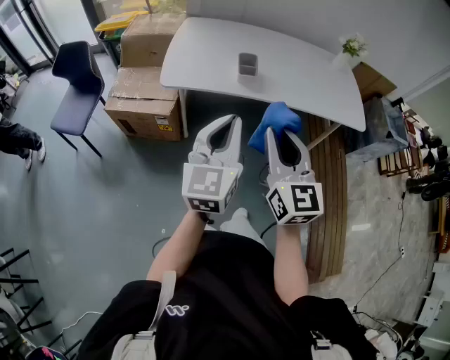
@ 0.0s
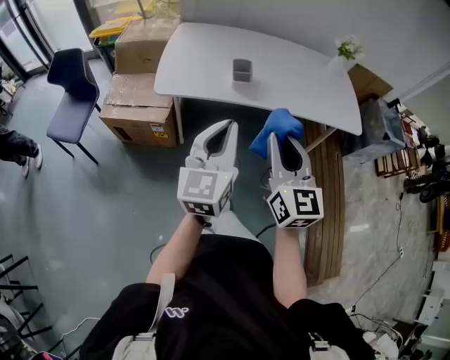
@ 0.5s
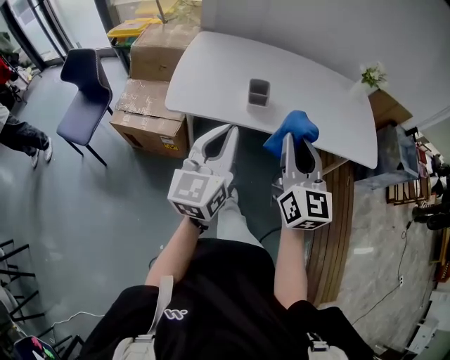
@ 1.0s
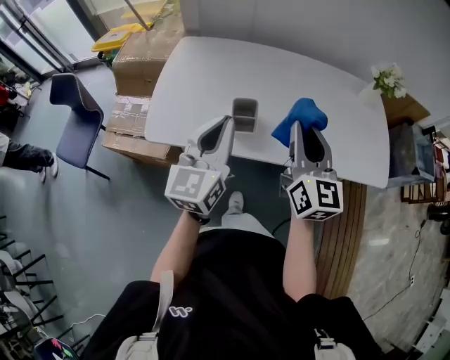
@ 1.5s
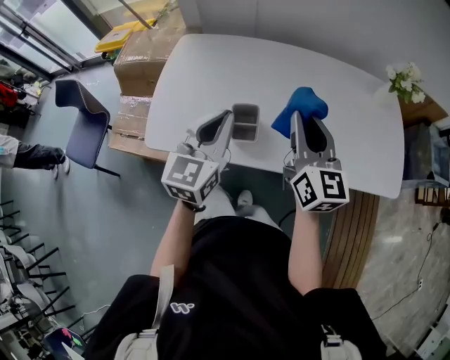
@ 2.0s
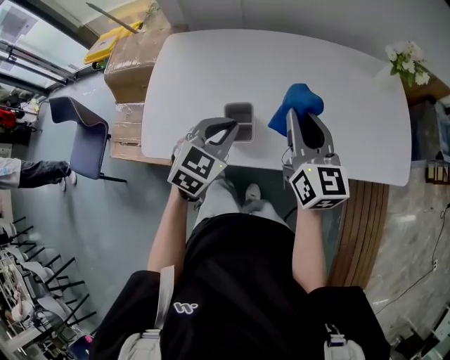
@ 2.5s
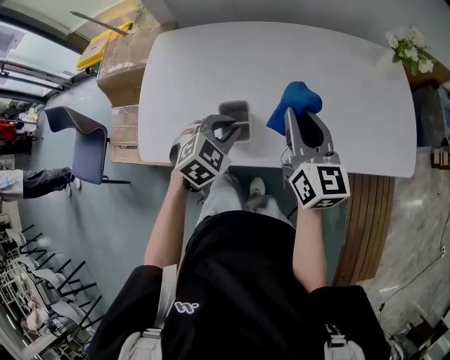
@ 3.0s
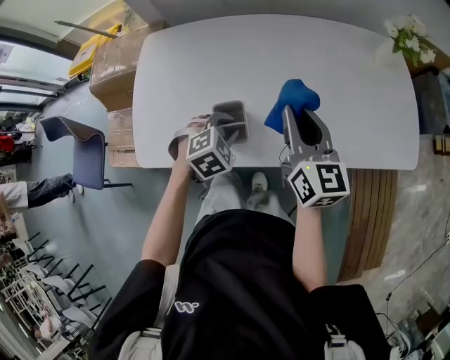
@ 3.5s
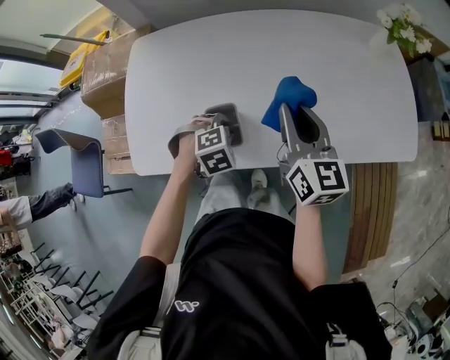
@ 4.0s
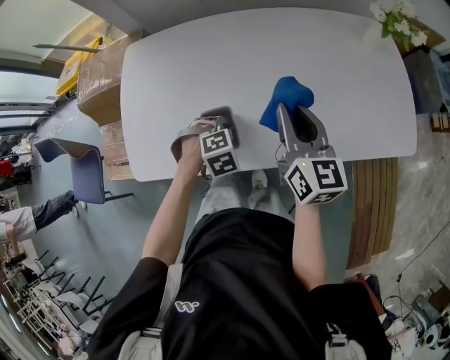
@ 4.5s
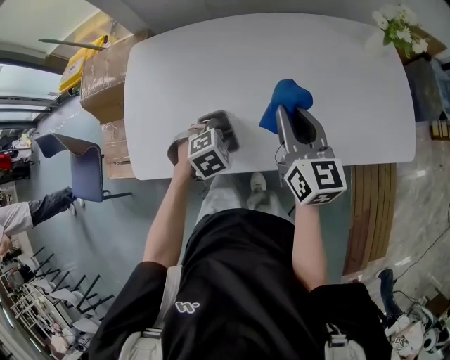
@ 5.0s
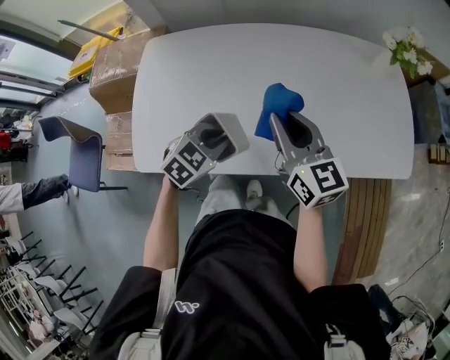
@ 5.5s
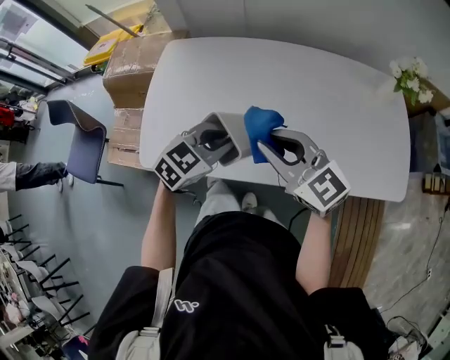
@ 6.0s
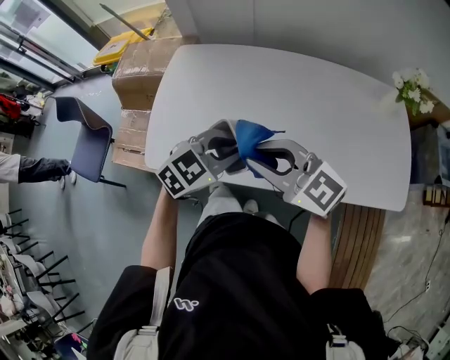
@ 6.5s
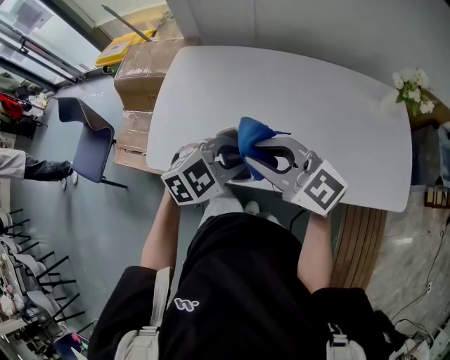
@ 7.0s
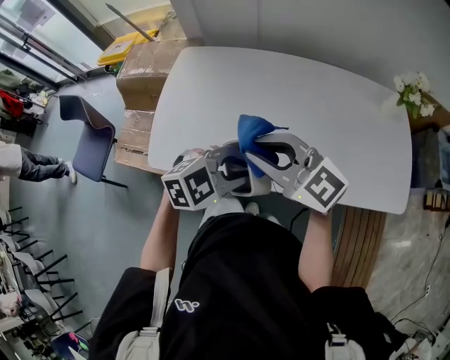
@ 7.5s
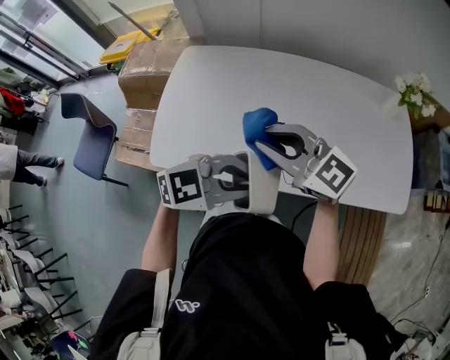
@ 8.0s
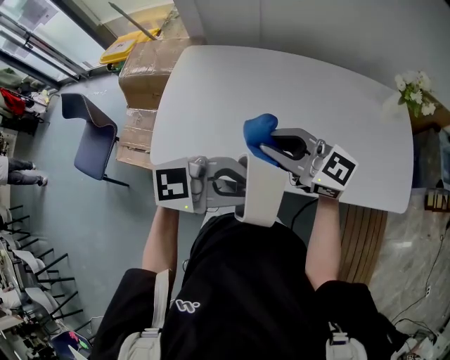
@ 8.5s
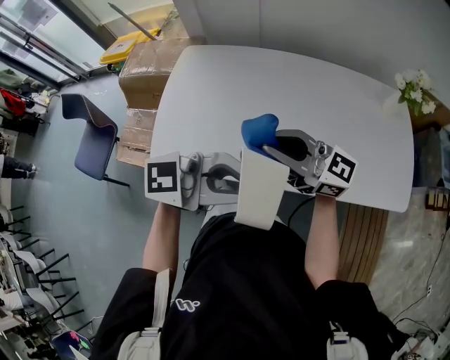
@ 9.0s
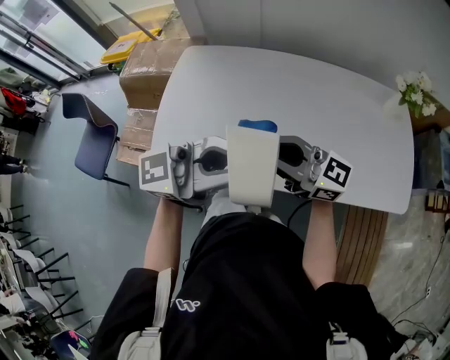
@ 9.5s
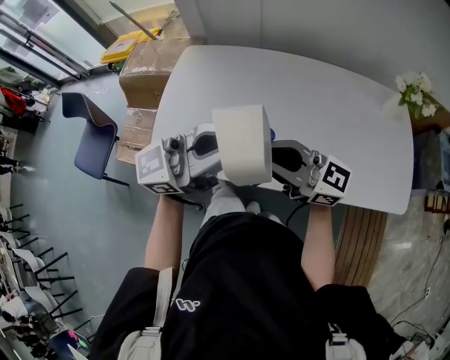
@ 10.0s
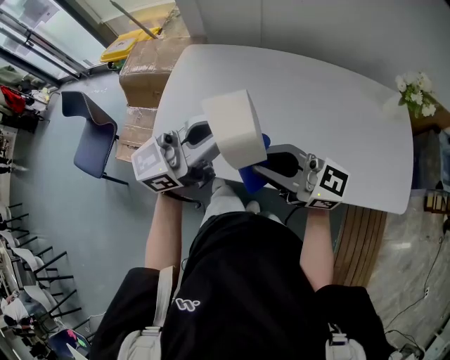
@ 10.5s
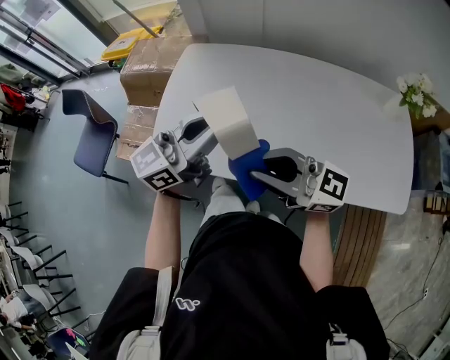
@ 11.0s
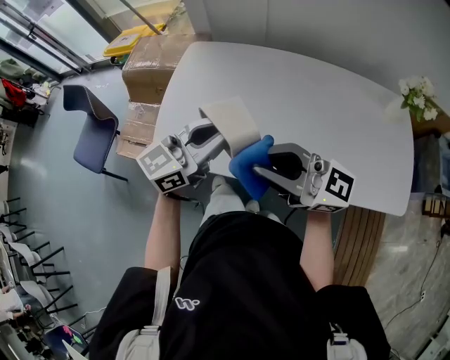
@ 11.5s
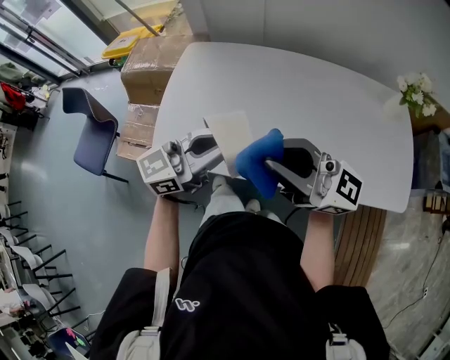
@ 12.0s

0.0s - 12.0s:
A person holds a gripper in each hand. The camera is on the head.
0.0s - 2.0s: The two grippers go about 40 cm forward.
2.0s - 4.0s: The left gripper moves downward, roughly 25 cm, angles its fingers downward, by approximately 70 degrees, and opens up; the right gripper shifts some 10 cm downward.
4.0s - 6.0s: The right gripper moves roughly 15 cm, and turns by about 50 degrees; the left gripper is displaced upward by roughly 15 cm, and angles its fingers upward, by some 40 degrees.
6.0s - 8.0s: The left gripper ends up roughly 15 cm from where it was, and rotates approximately 30 degrees.
8.0s - 10.0s: The left gripper heads upward, covering roughly 10 cm, and tips its fingers upward by some 40 degrees. Meanwhile the right gripper turns by approximately 30 degrees.
10.0s - 12.0s: The right gripper moves upward, roughly 10 cm. Meanwhile the left gripper goes some 10 cm downward.

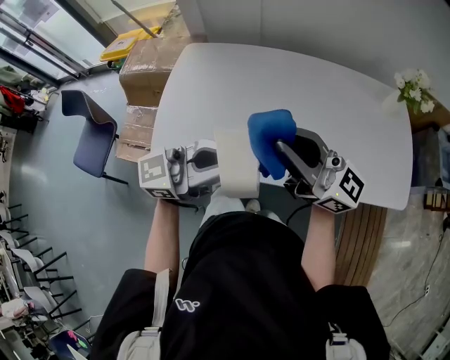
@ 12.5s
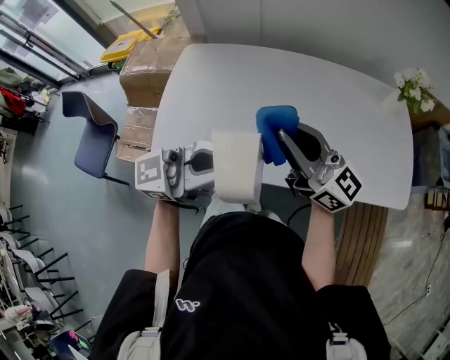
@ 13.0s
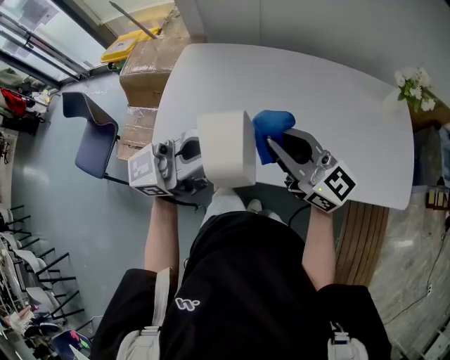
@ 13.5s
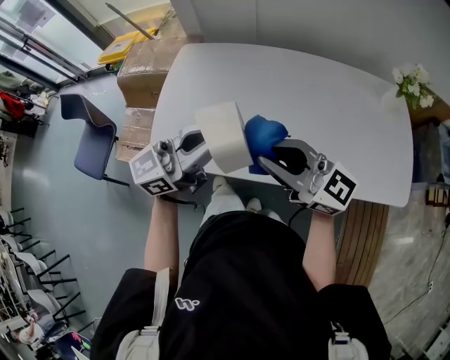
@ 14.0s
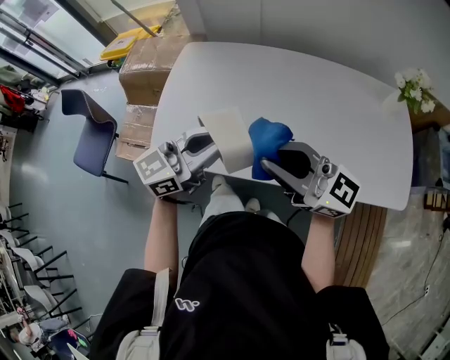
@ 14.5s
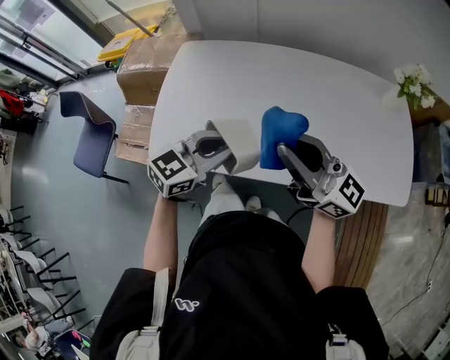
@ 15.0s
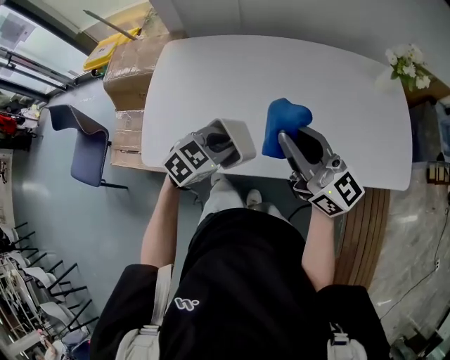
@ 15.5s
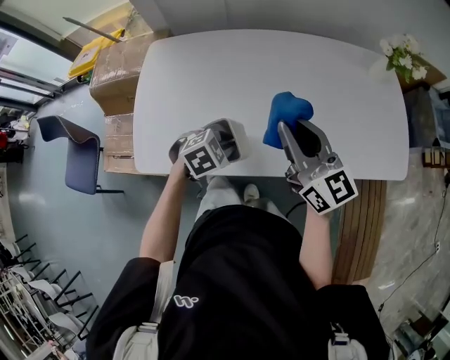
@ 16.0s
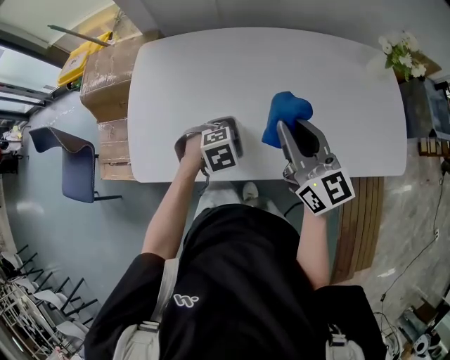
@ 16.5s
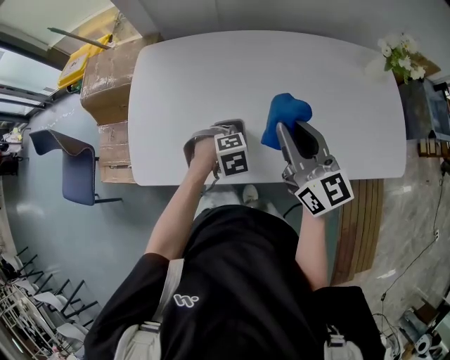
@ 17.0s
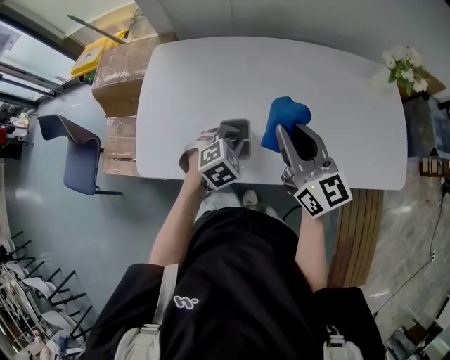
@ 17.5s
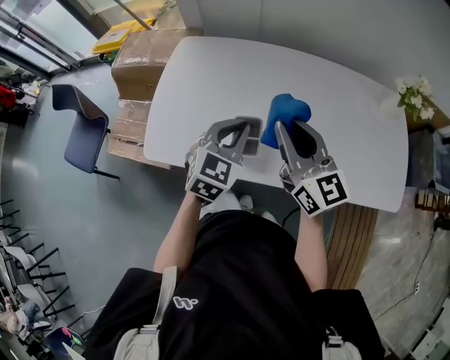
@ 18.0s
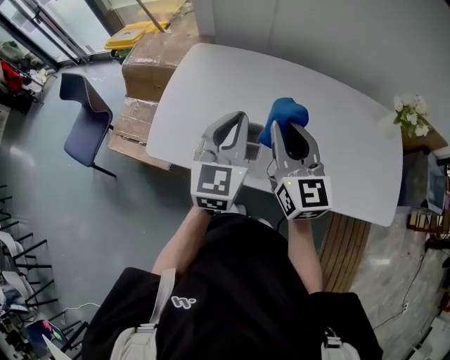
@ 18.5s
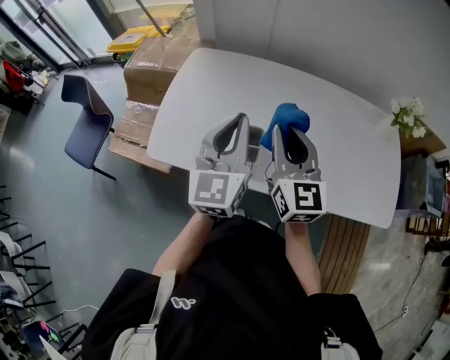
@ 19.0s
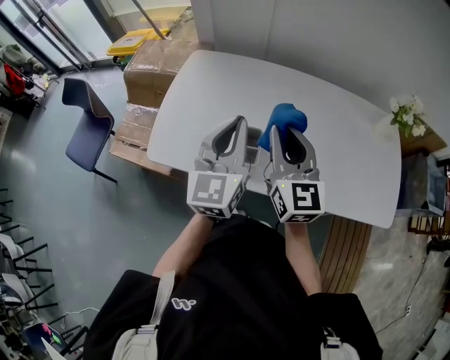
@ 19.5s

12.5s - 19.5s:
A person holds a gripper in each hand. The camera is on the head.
12.5s - 14.5s: The left gripper changes place by about 5 cm, and turns by roughly 20 degrees.
14.5s - 16.0s: The left gripper heads downward, covering approximately 20 cm, and points its fingers roughly 60 degrees further downward, while the right gripper moves roughly 15 cm, and swivels roughly 40 degrees.
17.5s - 19.5s: The right gripper goes approximately 5 cm to the left, while the left gripper goes roughly 25 cm upward, and points its fingers about 60 degrees further upward.

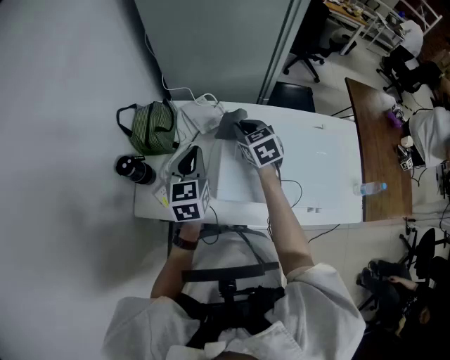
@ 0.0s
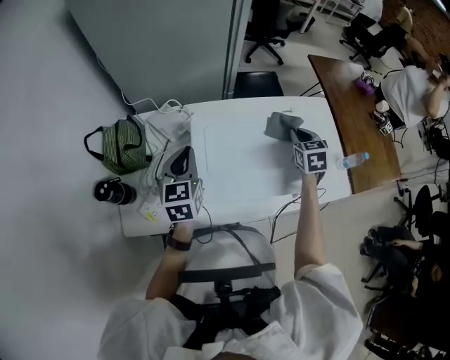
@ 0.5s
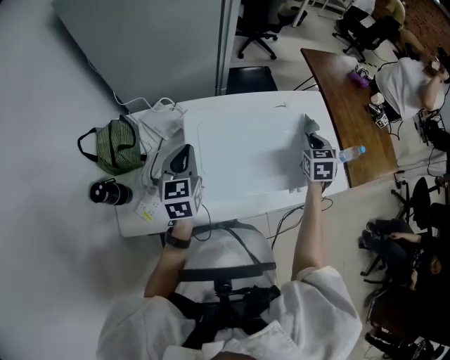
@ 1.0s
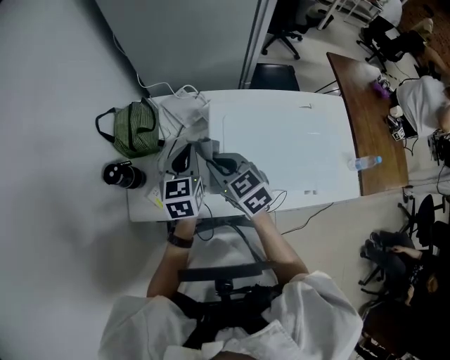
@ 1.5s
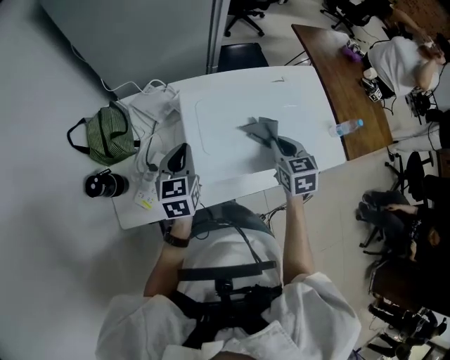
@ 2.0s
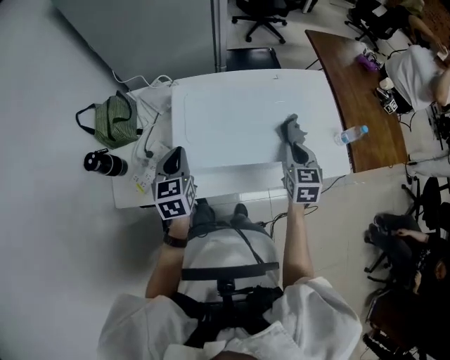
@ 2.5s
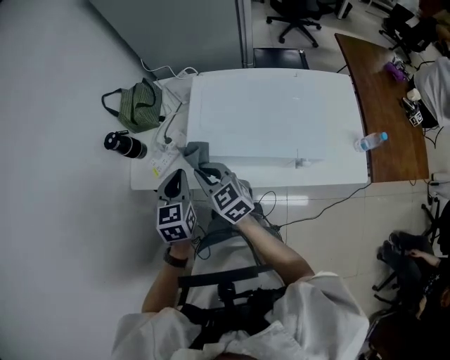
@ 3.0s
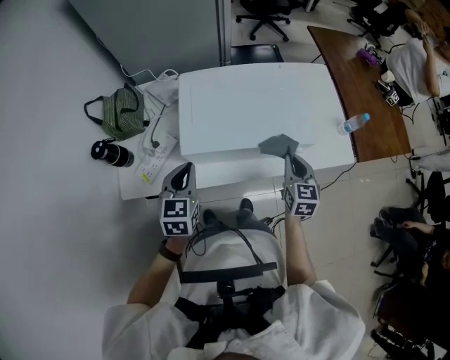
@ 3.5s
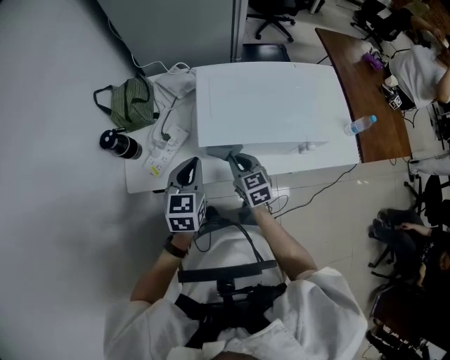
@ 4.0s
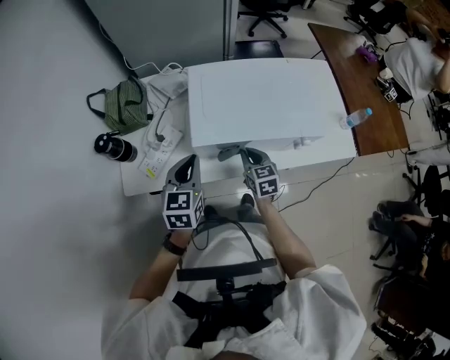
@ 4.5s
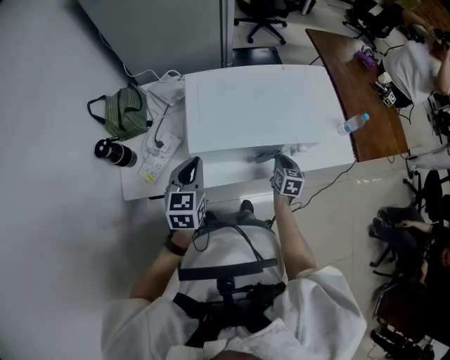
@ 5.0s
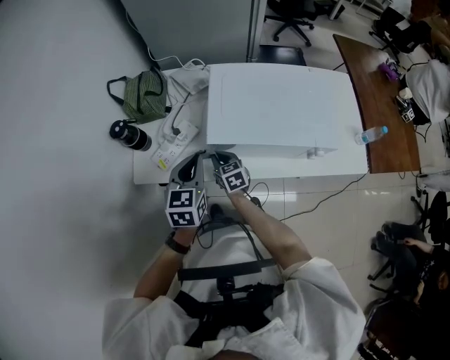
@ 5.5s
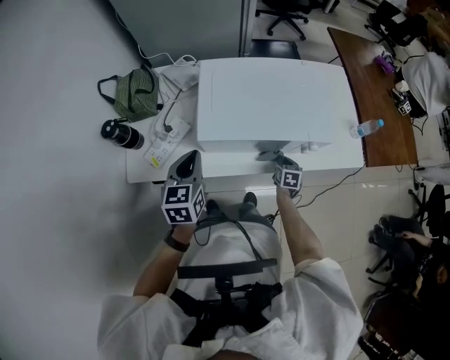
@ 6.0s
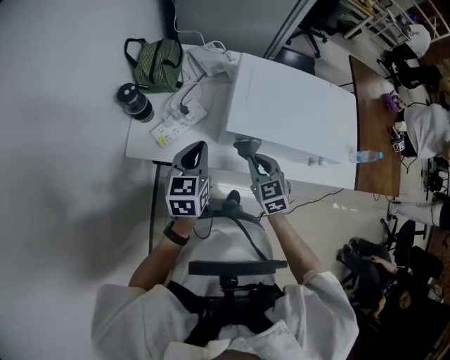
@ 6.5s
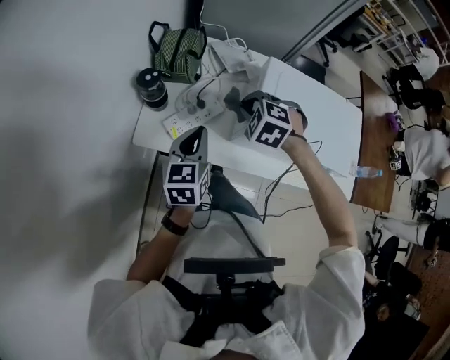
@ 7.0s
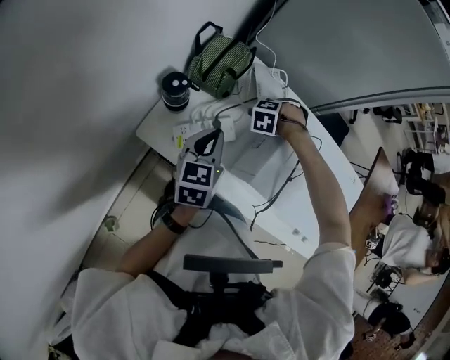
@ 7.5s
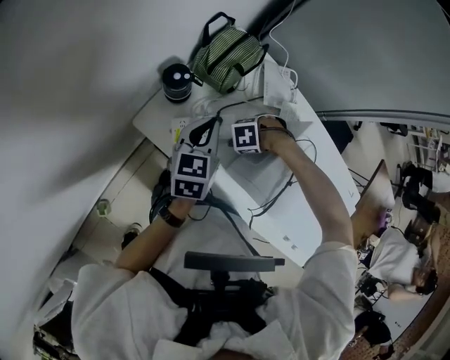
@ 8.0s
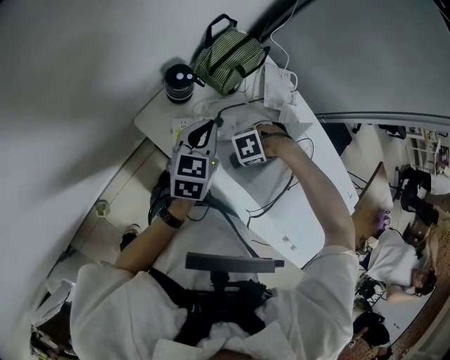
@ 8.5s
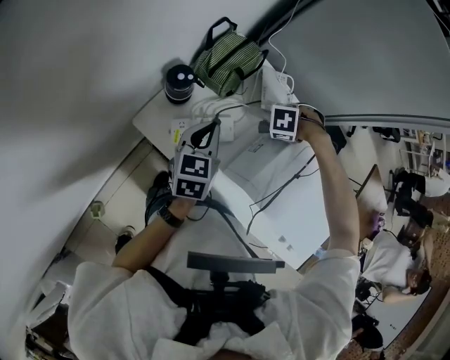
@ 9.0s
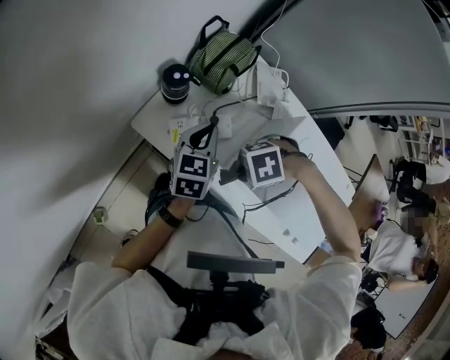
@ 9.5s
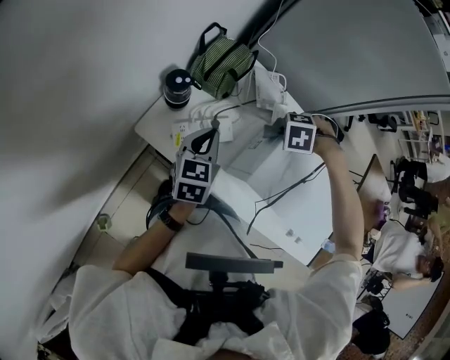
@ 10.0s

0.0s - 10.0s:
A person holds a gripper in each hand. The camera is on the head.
0.0s - 2.0s: The right gripper rotates some 30 degrees; the left gripper travels downward by about 5 cm.
2.0s - 4.0s: The left gripper changes place by approximately 20 cm. The right gripper ends up roughly 25 cm from where it was, and swivels about 20 degrees.
4.0s - 6.0s: The right gripper goes left and right, approximately 35 cm each way, reversing 2 times, and swivels some 40 degrees.
6.0s - 8.0s: The right gripper travels upward and back again, about 25 cm each way, and rotates around the line of its fingers by roughly 130 degrees, counterclockwise from behind. The left gripper changes place by some 35 cm, and swivels about 30 degrees.
8.0s - 10.0s: The left gripper shifts by about 5 cm, while the right gripper goes approximately 15 cm upward, and turns by about 20 degrees.
